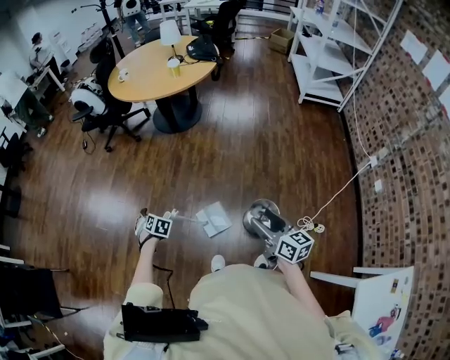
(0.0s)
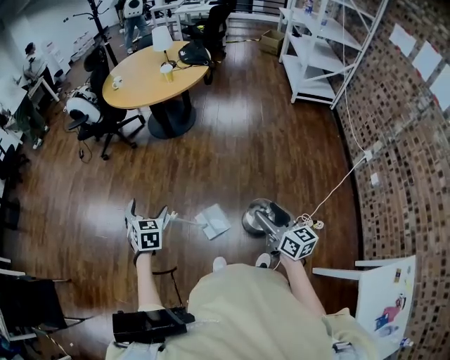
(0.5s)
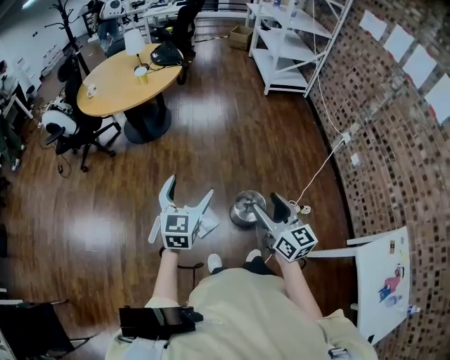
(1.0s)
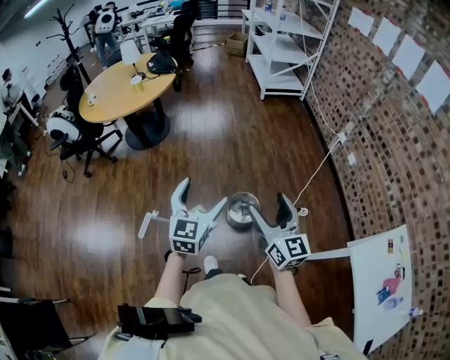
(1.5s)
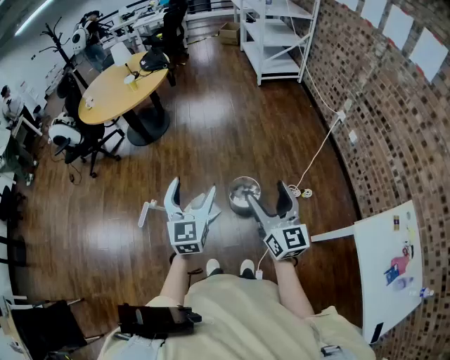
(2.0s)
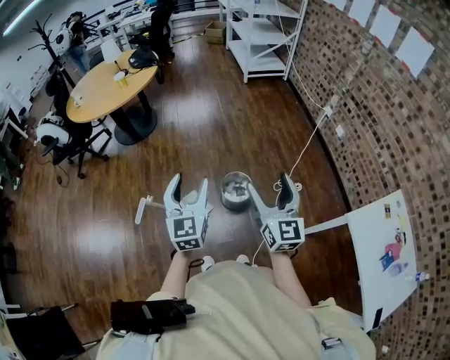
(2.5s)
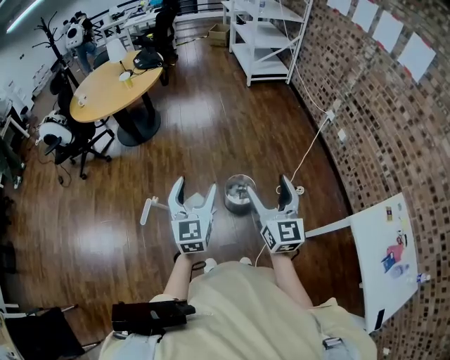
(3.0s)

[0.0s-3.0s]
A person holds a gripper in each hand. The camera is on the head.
0.0s to 1.5s: The left gripper moves roughly 50 cm, and tilts its fingers about 50 degrees upward. Meanwhile the right gripper moves upward, about 15 cm, and swivels about 40 degrees.
1.5s to 3.0s: Both grippers move backward, about 5 cm.

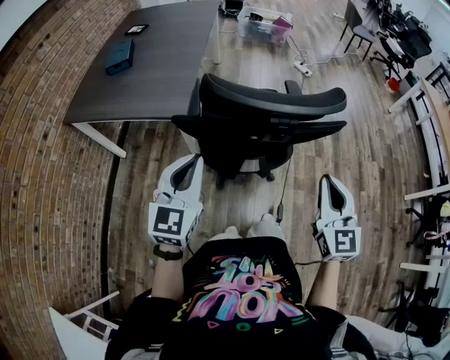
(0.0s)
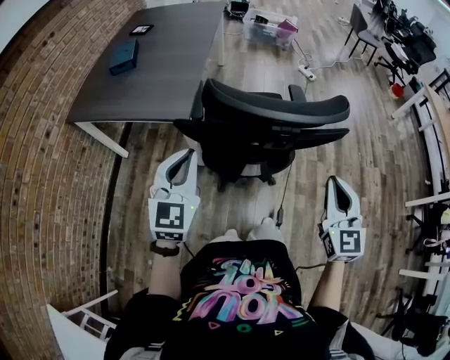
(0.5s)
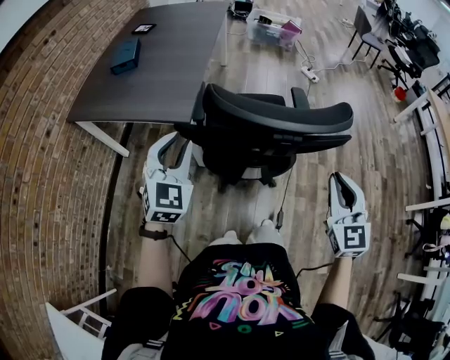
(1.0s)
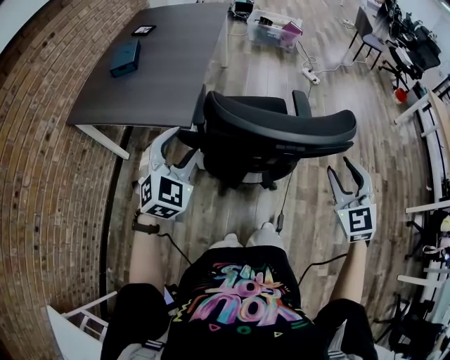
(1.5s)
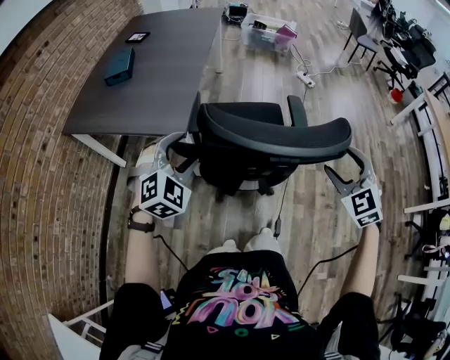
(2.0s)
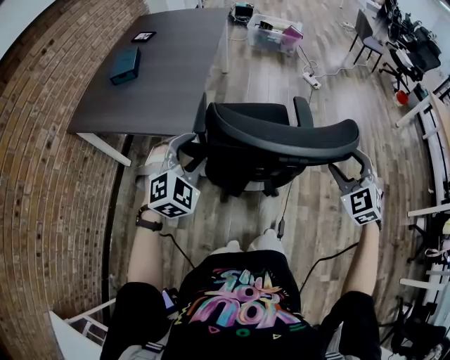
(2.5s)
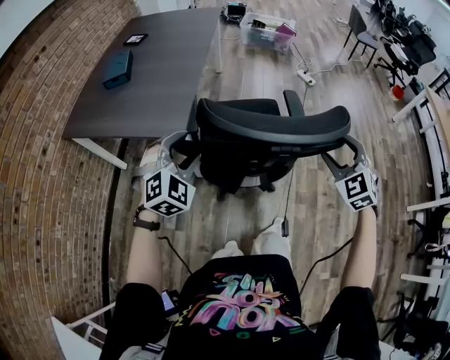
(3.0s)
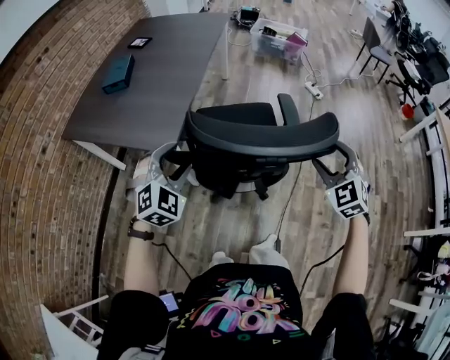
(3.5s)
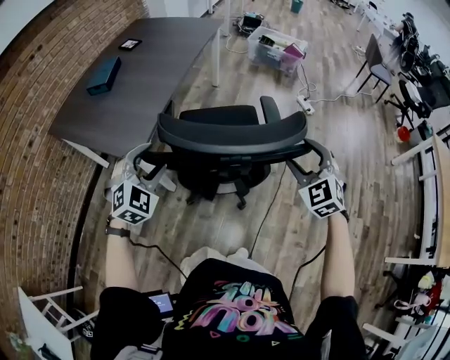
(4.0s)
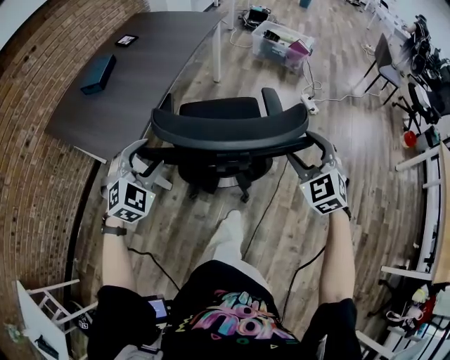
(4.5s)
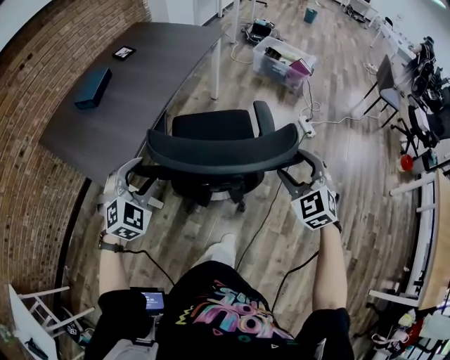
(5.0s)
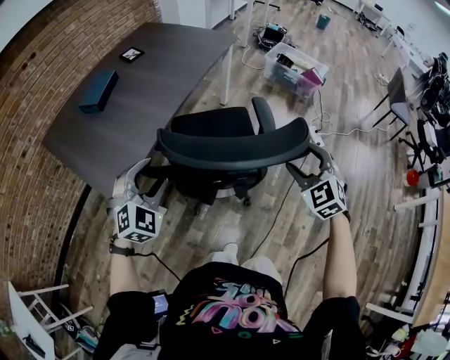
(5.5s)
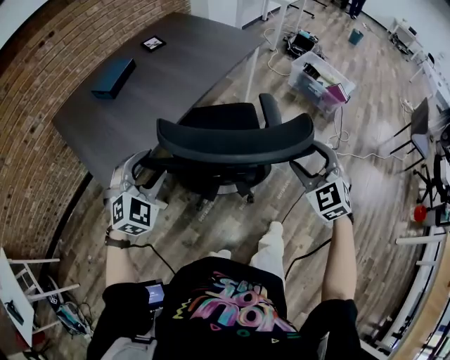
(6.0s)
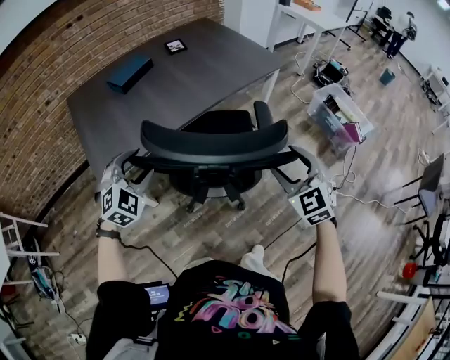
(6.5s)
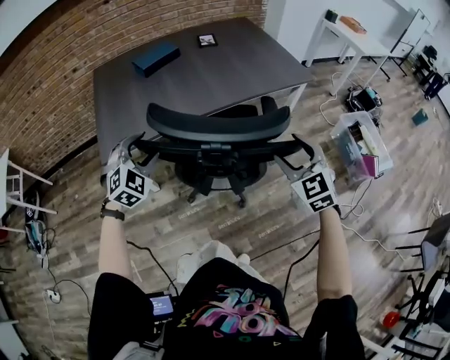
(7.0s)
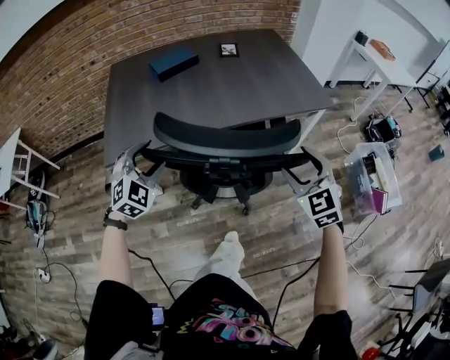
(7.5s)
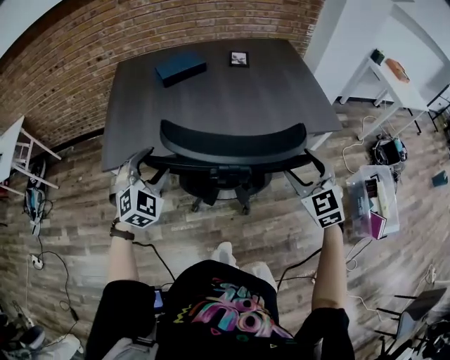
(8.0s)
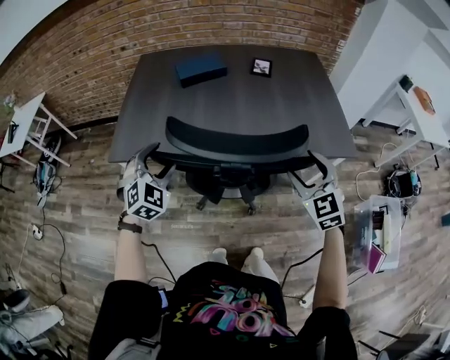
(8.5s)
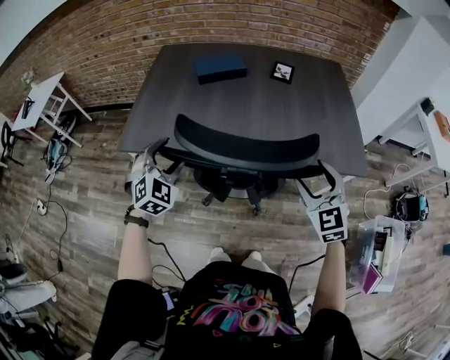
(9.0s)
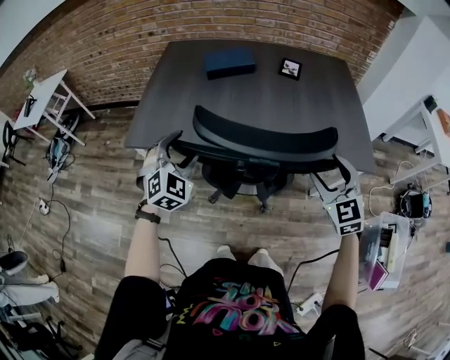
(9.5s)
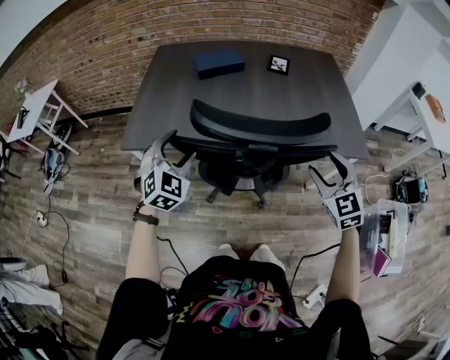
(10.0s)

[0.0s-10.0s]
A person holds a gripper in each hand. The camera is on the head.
0.0s to 2.0s: The right gripper moves forward, approximately 15 cm, turns by some 40 degrees, and opens; the left gripper is displaced forward and downward by about 10 cm, twists approximately 40 degrees clockwise, seen from behind, and opens up.
2.0s to 4.0s: The left gripper shifts approximately 15 cm forward and to the right. Meanwhile the right gripper shifts roughly 25 cm forward and to the right.
4.0s to 6.0s: The right gripper moves forward, roughly 30 cm, and changes its angle by some 20 degrees; the left gripper is displaced forward and to the right by some 20 cm.
6.0s to 8.0s: The right gripper moves about 35 cm, and swivels roughly 40 degrees. Meanwhile the left gripper shifts by about 15 cm, and swivels about 50 degrees.
8.0s to 10.0s: The right gripper goes about 5 cm forward.

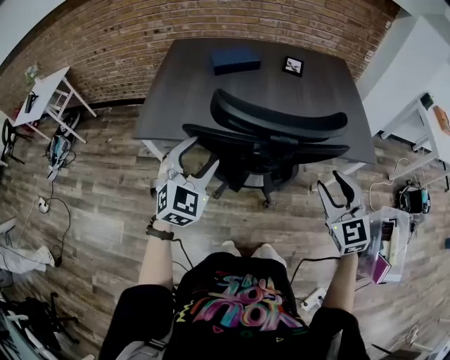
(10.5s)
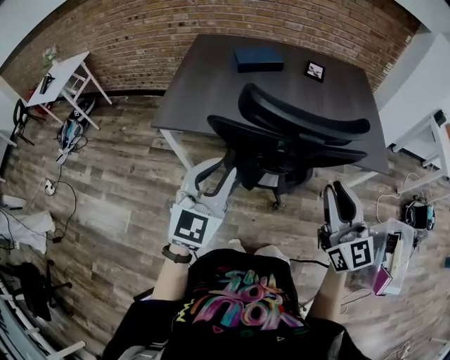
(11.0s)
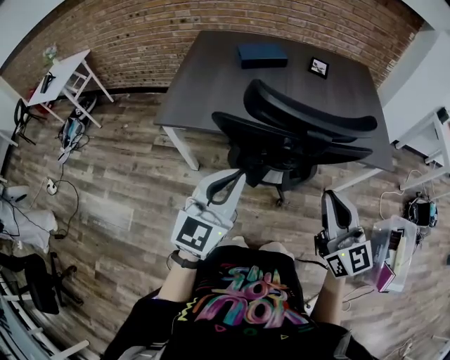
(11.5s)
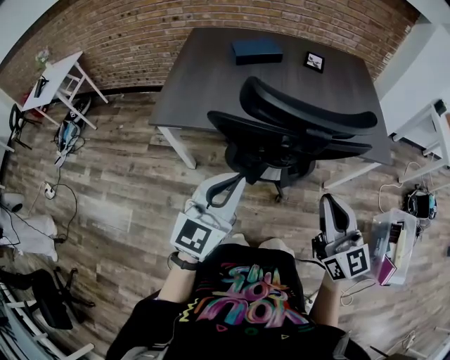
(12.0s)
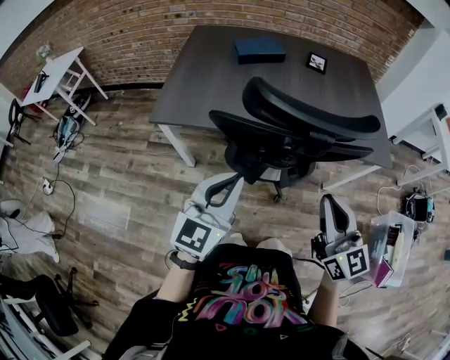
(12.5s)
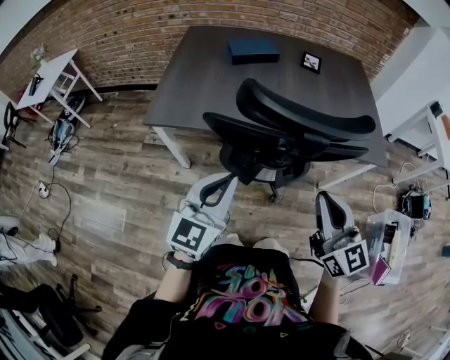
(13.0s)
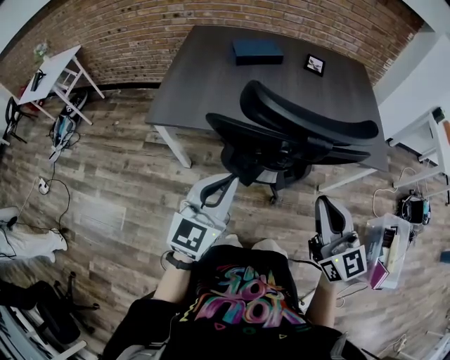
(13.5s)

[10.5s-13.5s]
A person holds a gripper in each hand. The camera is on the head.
10.5s to 12.0s: The left gripper moves backward, some 10 cm, changes its angle by some 40 degrees, and closes its fingers, while the right gripper is displaced to the left and backward by approximately 10 cm, rotates approximately 30 degrees, and closes its fingers.
12.0s to 13.5s: The grippers make only small movements.

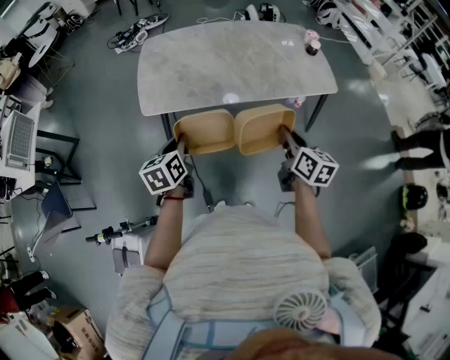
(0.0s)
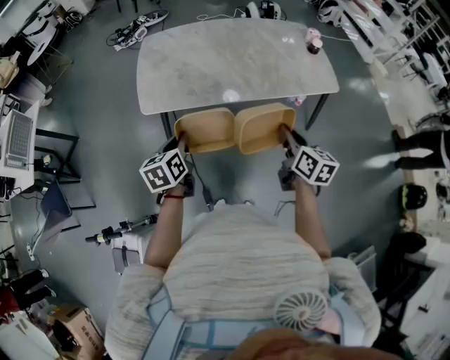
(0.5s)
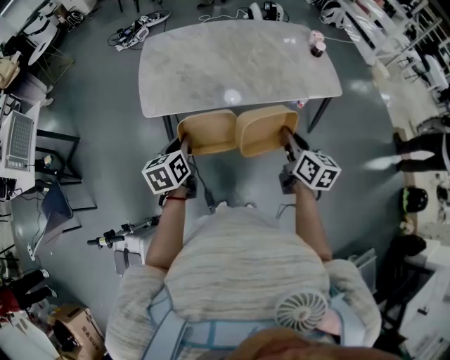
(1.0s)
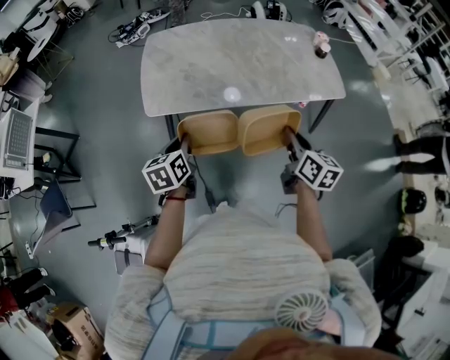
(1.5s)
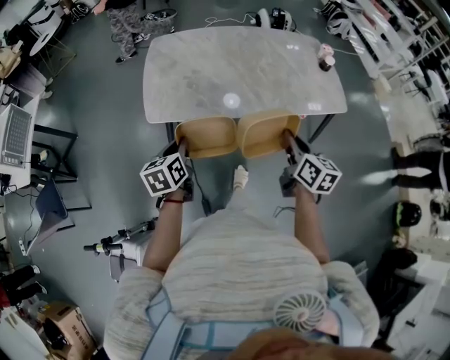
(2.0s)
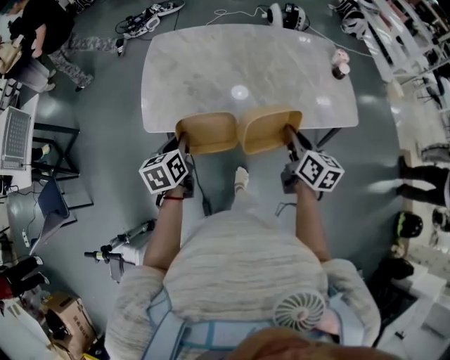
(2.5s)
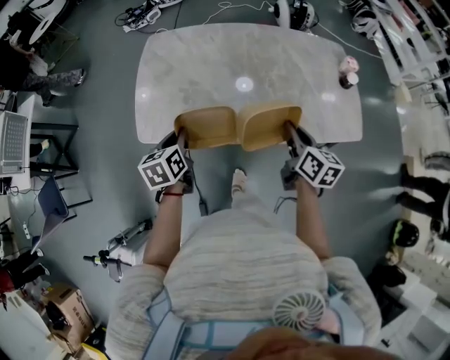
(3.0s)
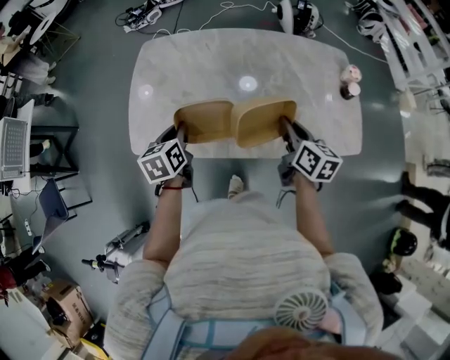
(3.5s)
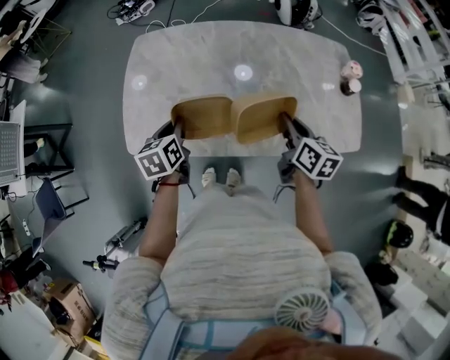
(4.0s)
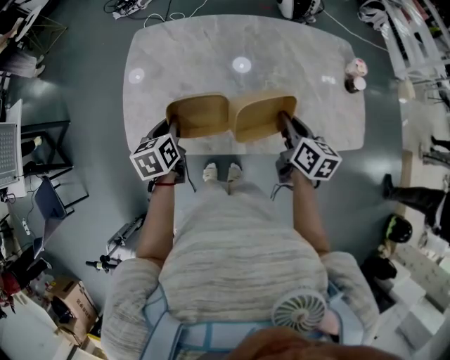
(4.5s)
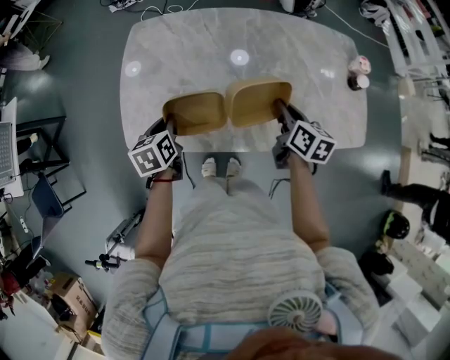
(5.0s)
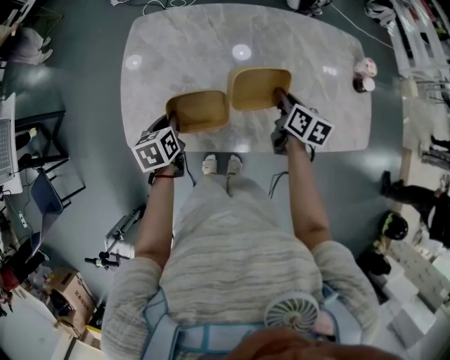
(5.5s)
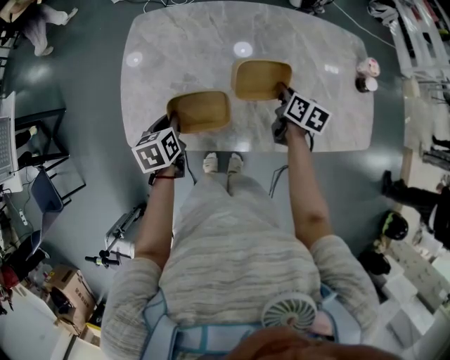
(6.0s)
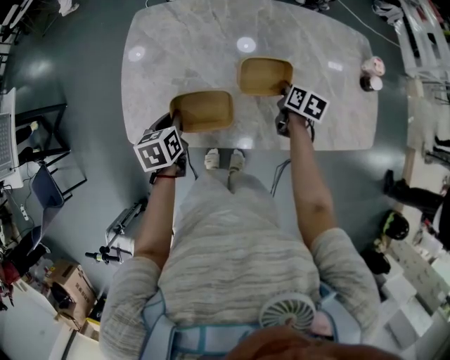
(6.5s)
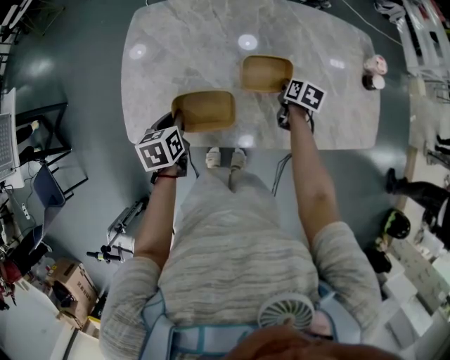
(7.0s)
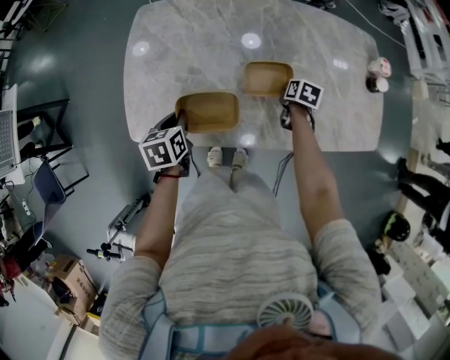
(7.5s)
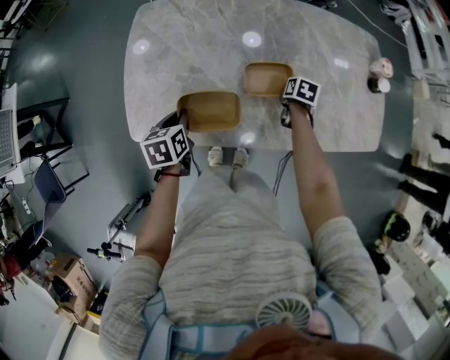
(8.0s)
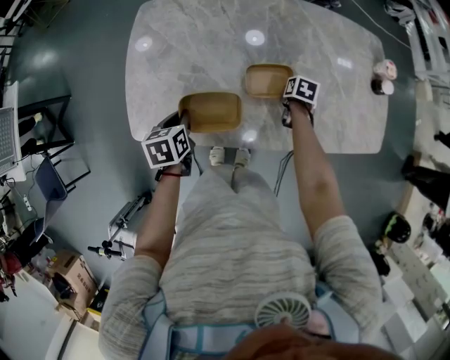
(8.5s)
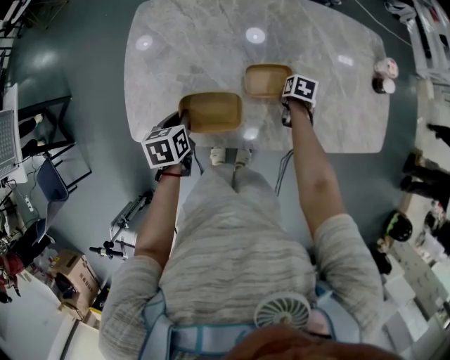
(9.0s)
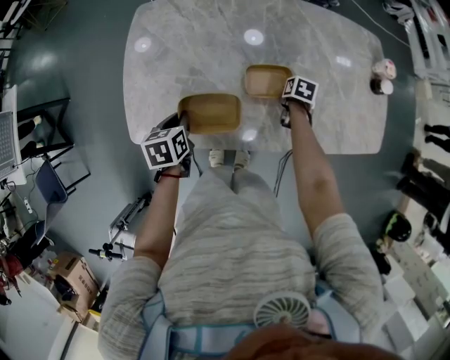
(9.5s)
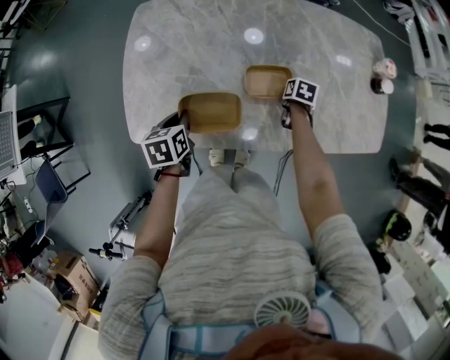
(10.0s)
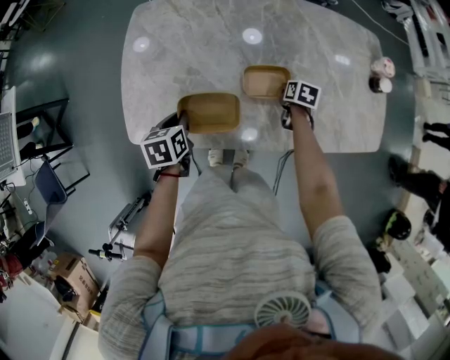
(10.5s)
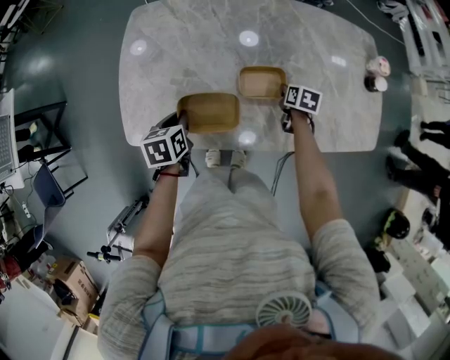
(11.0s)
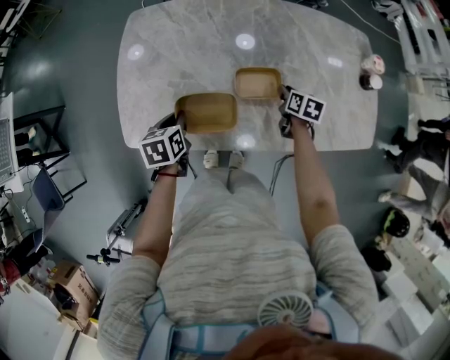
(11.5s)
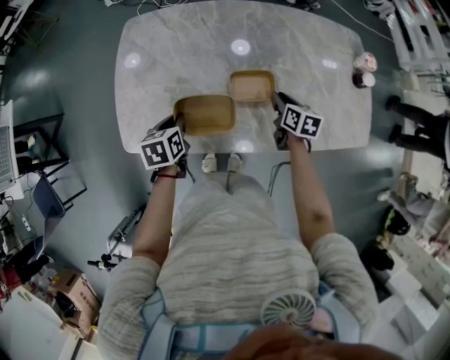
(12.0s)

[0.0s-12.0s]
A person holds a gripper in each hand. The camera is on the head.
0.0s to 2.0s: The grippers both shift forward by about 5 cm.
2.0s to 4.0s: The two grippers go about 30 cm forward.
4.0s to 6.0s: The left gripper goes about 5 cm downward. The right gripper moves forward and downward, approximately 15 cm.
6.0s to 8.0s: The right gripper shifts approximately 15 cm downward, and rotates about 30 degrees.
8.0s to 10.0s: There are only small adjustments of the grippers.
10.0s to 12.0s: The right gripper goes roughly 10 cm upward, and changes its angle by about 30 degrees.
